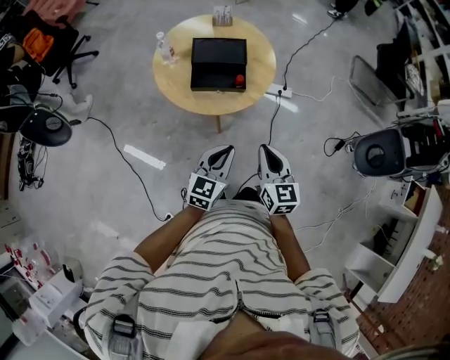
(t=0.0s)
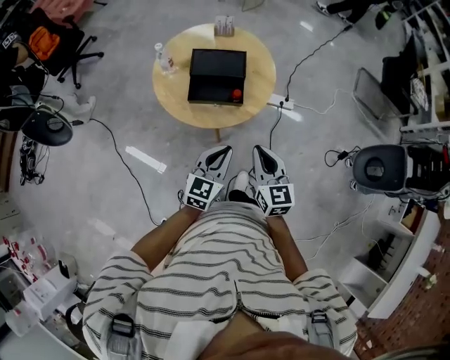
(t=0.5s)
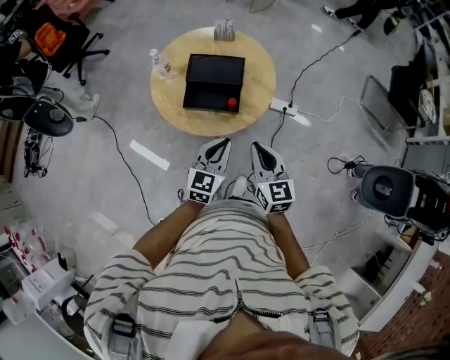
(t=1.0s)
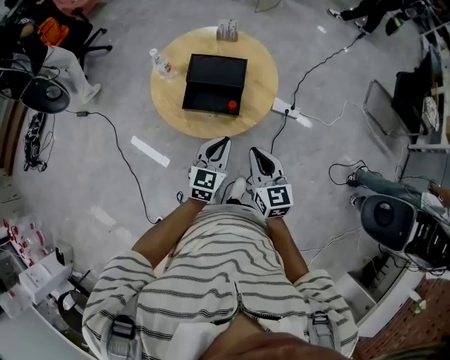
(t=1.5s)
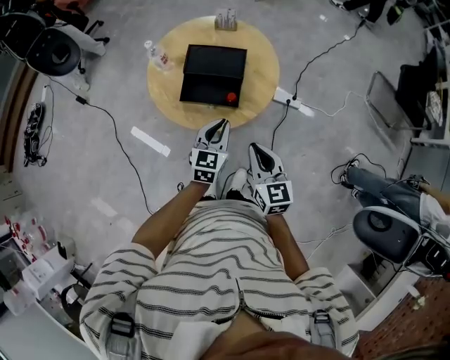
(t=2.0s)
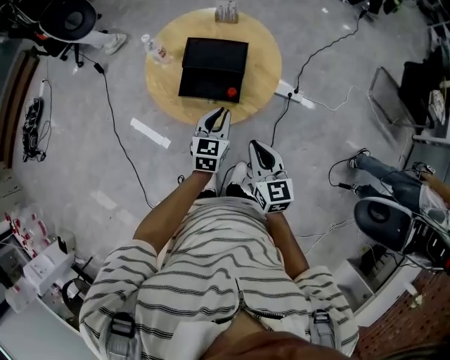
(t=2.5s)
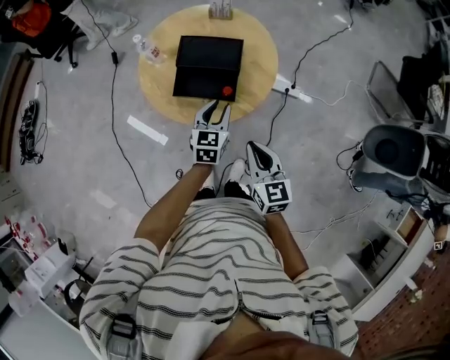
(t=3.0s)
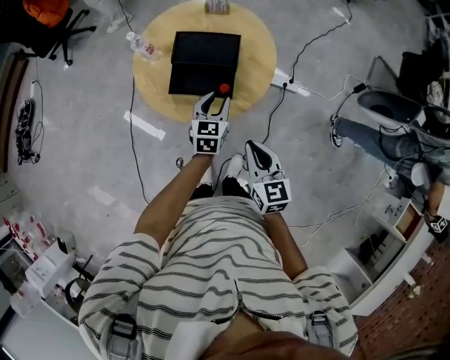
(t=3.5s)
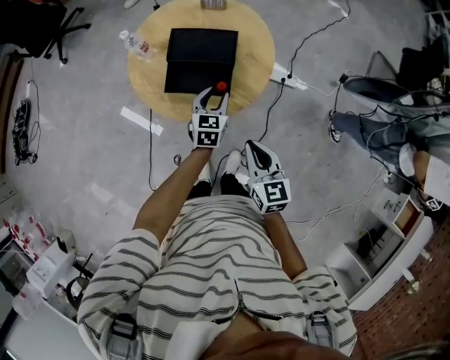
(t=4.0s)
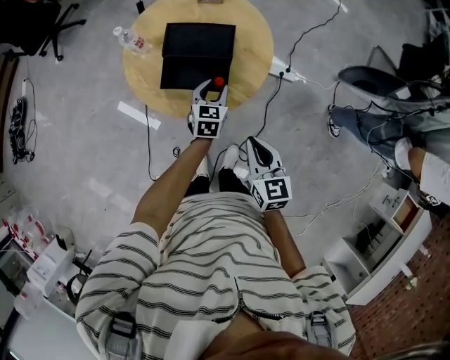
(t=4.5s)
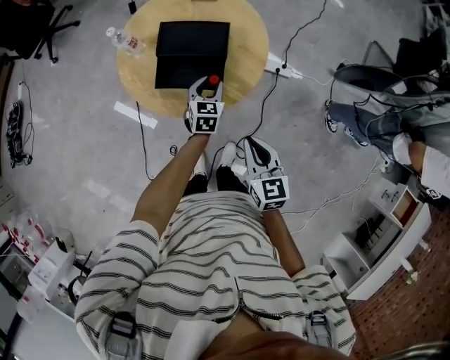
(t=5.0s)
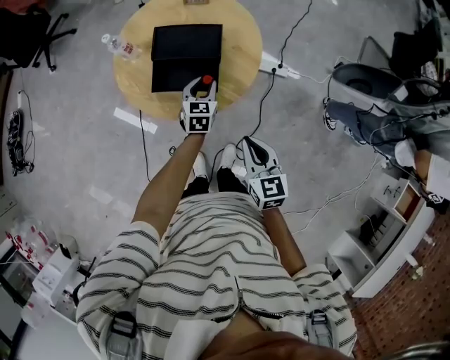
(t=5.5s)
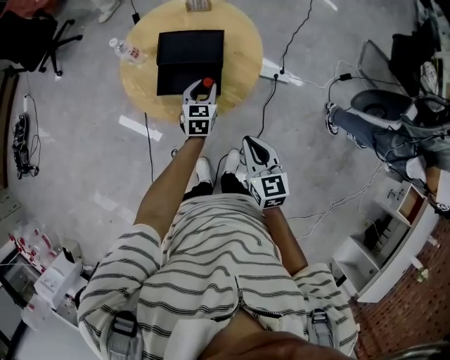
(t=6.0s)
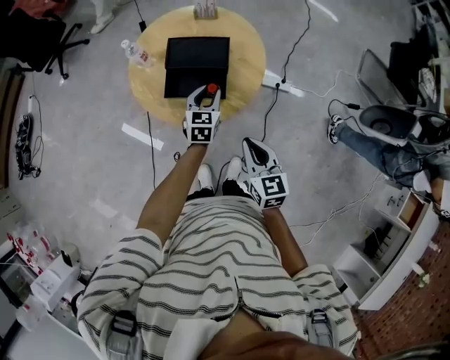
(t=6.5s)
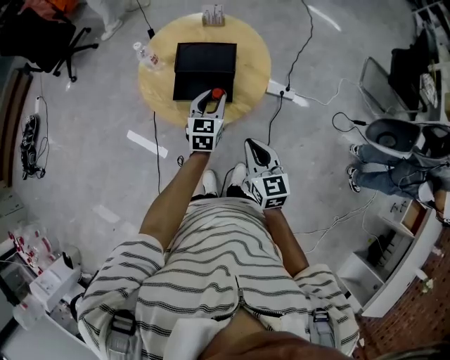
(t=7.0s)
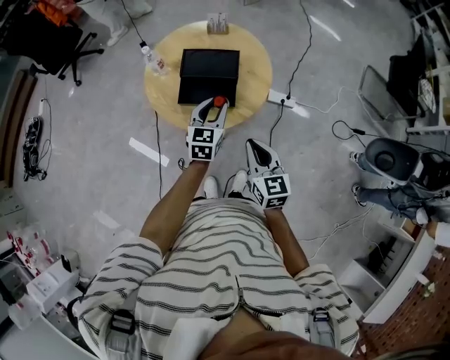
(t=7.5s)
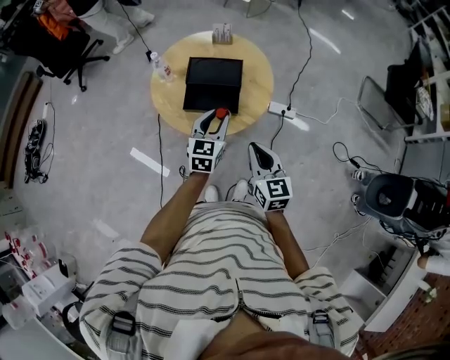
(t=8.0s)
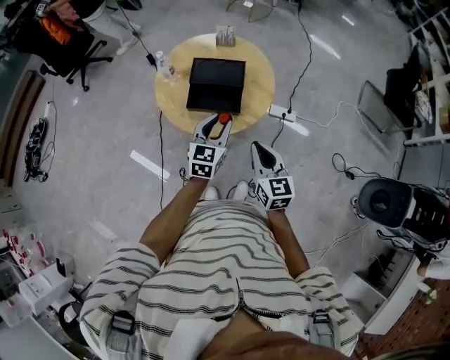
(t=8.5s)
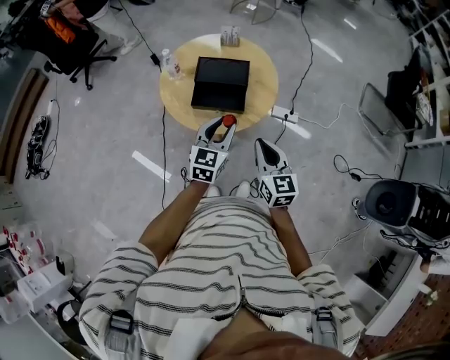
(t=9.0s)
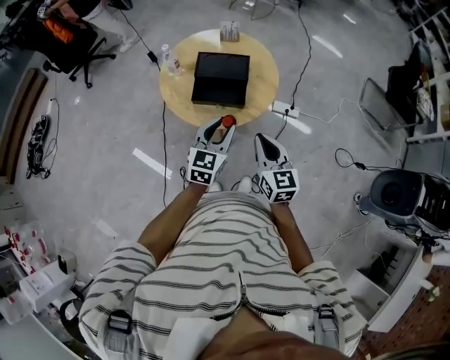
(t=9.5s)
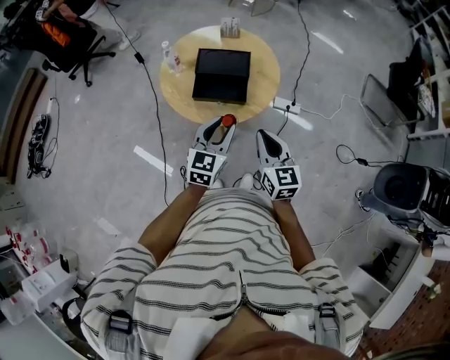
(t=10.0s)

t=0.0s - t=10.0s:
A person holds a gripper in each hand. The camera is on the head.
t=0.0s - t=2.0s: The left gripper goes approximately 20 cm forward, while the right gripper heads forward, covering approximately 10 cm.
t=2.0s - t=4.0s: The left gripper heads forward and downward, covering about 15 cm, and opens up.
t=4.0s - t=6.0s: There are only small adjustments of the grippers.
t=6.0s - t=8.0s: The right gripper shifts some 5 cm upward. Meanwhile the left gripper is displaced upward and backward by about 15 cm.
t=8.0s - t=10.0s: The left gripper is displaced backward by roughly 10 cm.

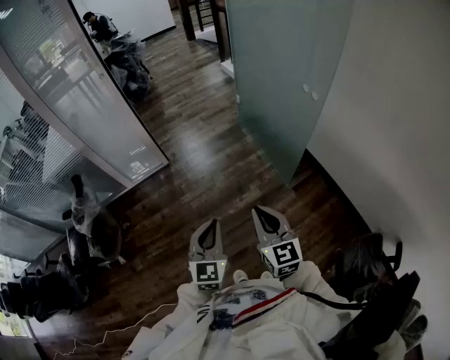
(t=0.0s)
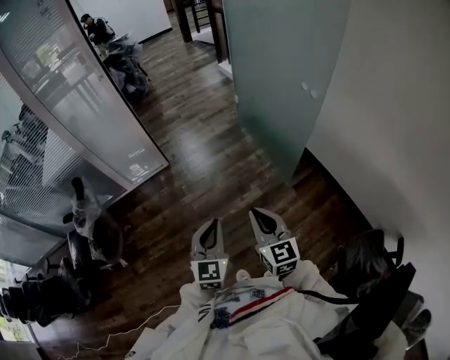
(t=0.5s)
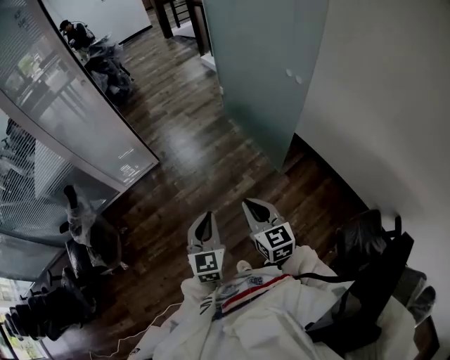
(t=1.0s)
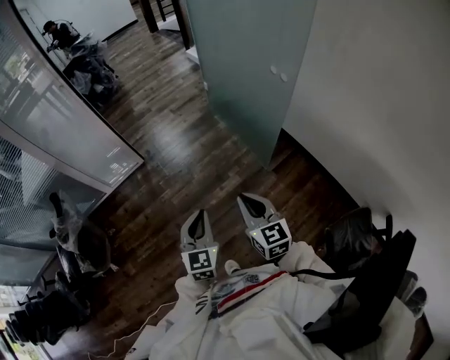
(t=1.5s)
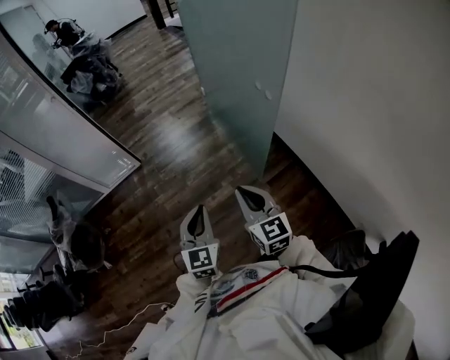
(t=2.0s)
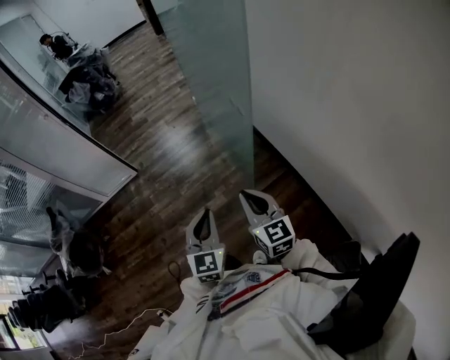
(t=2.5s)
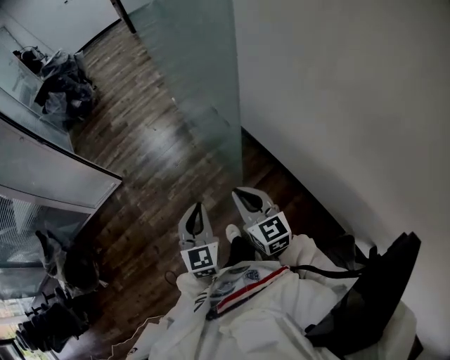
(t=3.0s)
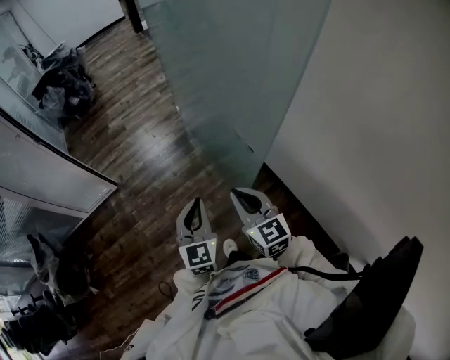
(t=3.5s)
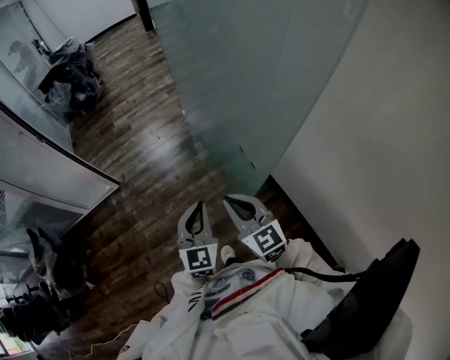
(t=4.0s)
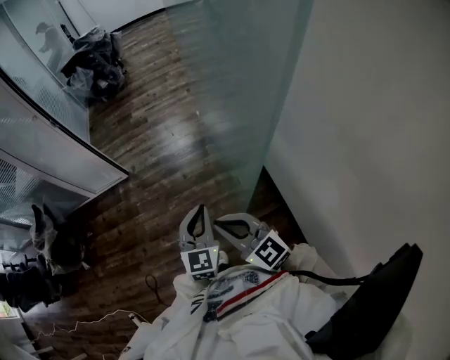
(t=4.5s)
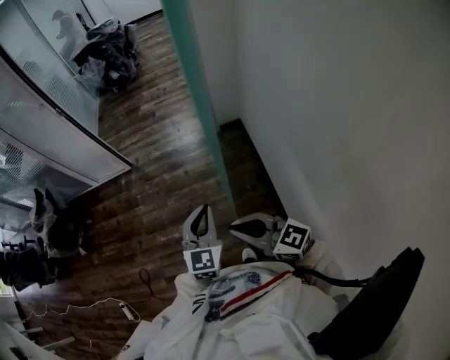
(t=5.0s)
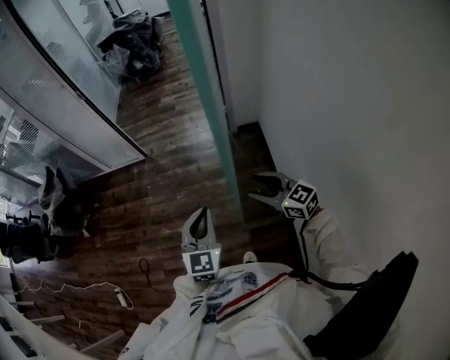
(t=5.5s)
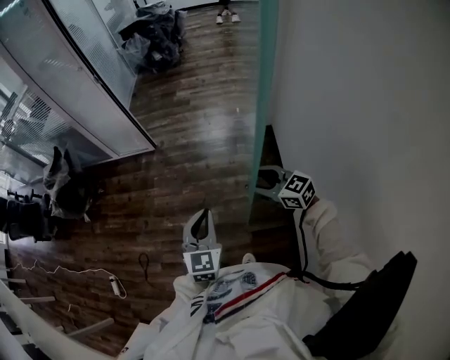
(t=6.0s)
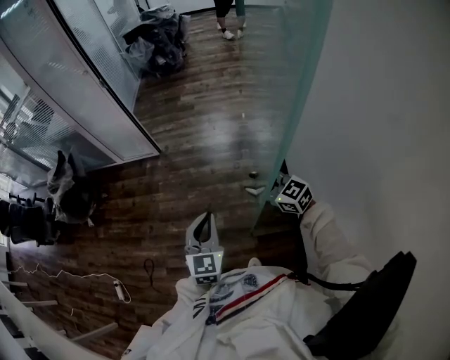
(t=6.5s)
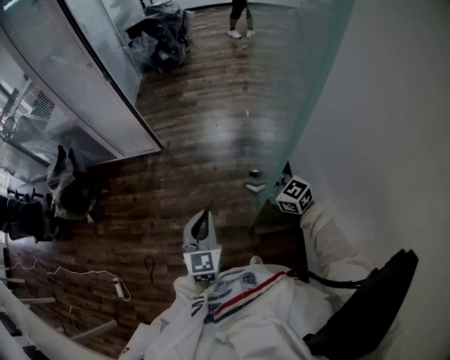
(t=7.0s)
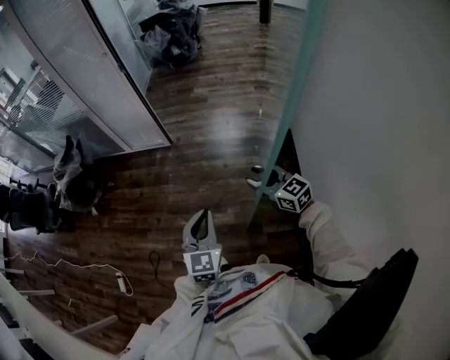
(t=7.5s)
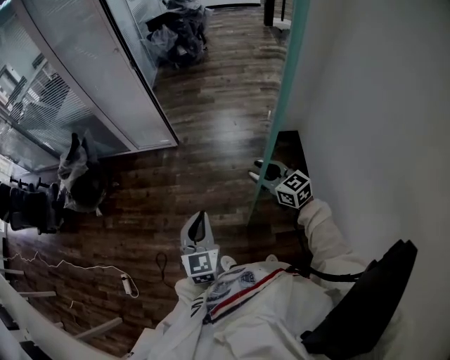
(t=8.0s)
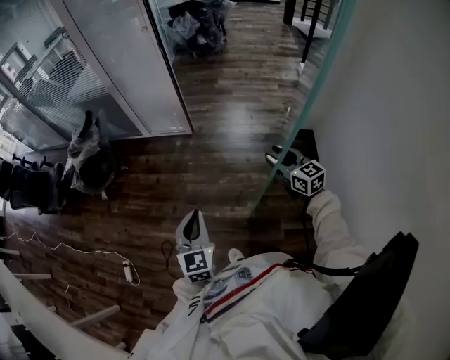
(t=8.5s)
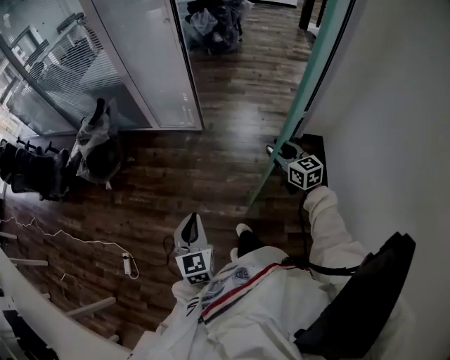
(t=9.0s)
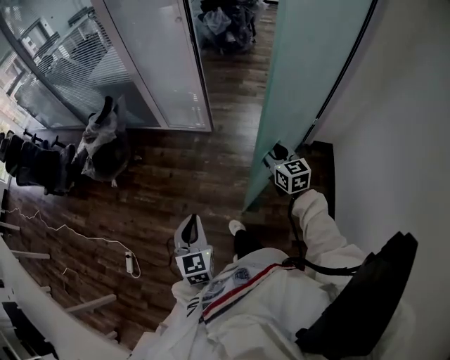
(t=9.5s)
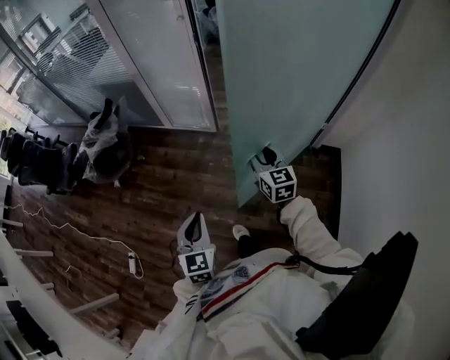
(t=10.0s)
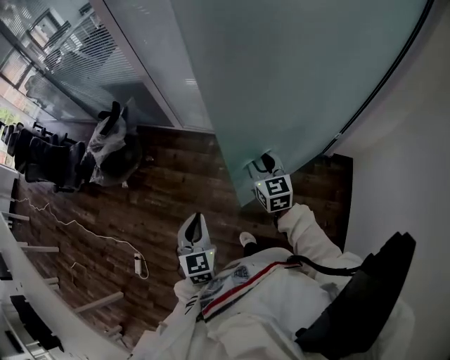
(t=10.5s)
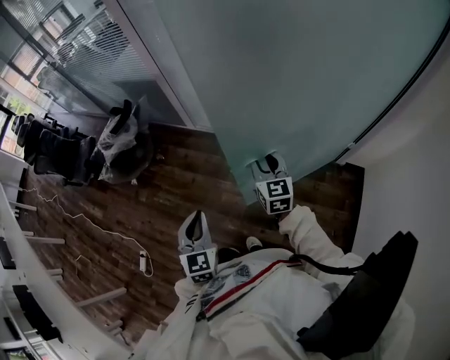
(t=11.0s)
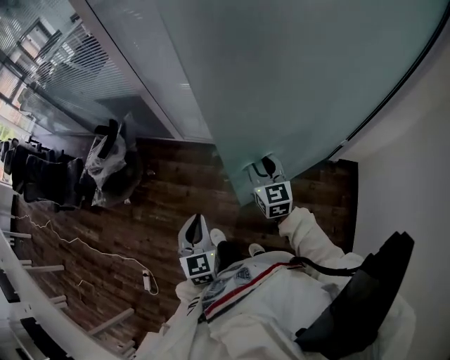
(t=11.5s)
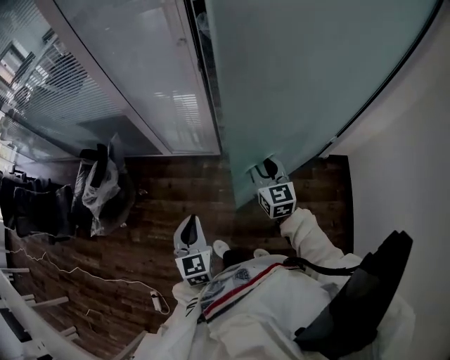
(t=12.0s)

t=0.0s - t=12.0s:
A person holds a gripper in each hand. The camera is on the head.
t=0.0s - t=2.0s: Both grippers travel together to the right and forward, some 20 cm.
t=2.0s - t=4.0s: The grippers both shift forward and to the right by approximately 25 cm.
t=4.0s - t=6.0s: The right gripper ends up about 15 cm from where it was, swivels some 50 degrees, and opens up. Meanwhile the left gripper rotates about 30 degrees.
t=6.0s - t=8.0s: Both grippers travel together to the left and forward, approximately 20 cm.
t=8.0s - t=10.0s: The right gripper is displaced forward and to the left by about 25 cm, while the left gripper moves to the left and forward, approximately 20 cm.
t=10.0s - t=12.0s: Both grippers move forward, roughly 20 cm.

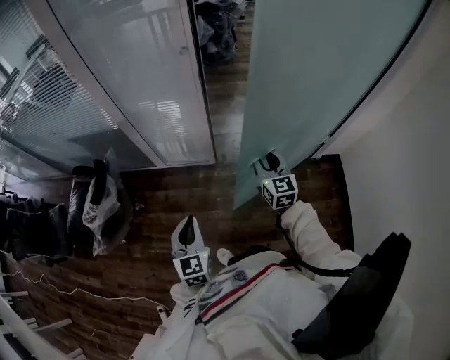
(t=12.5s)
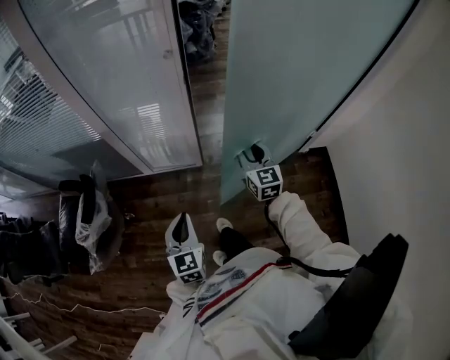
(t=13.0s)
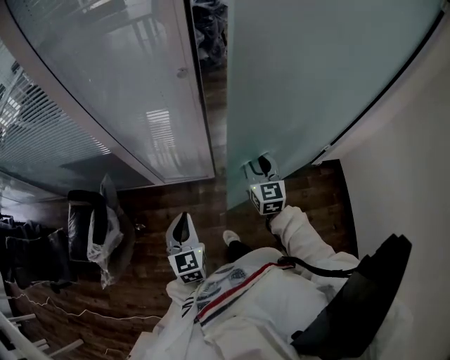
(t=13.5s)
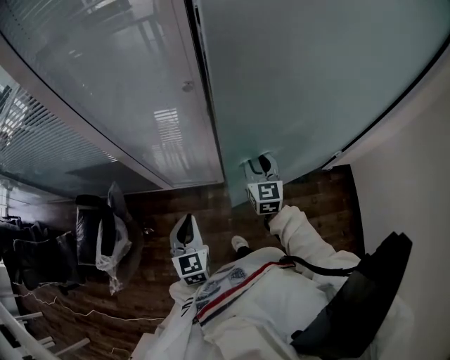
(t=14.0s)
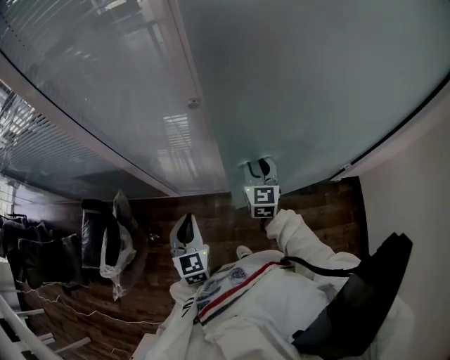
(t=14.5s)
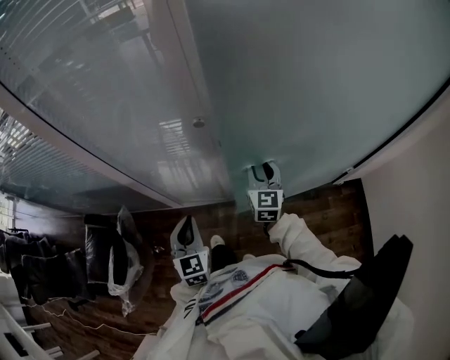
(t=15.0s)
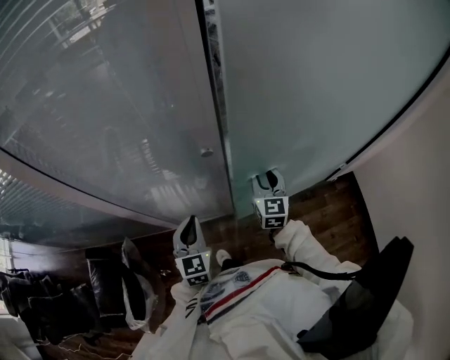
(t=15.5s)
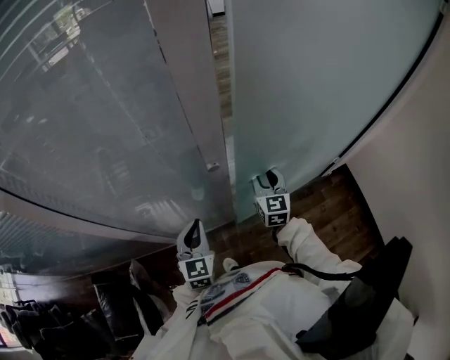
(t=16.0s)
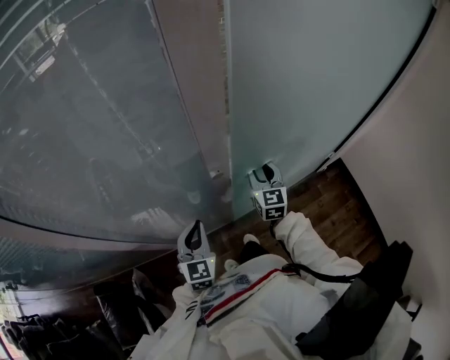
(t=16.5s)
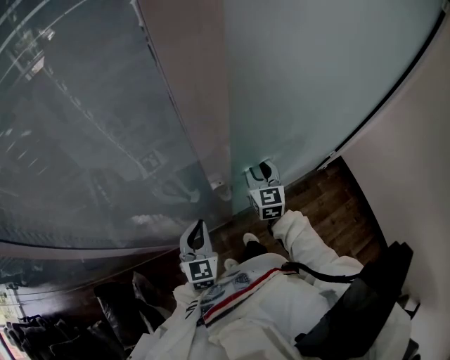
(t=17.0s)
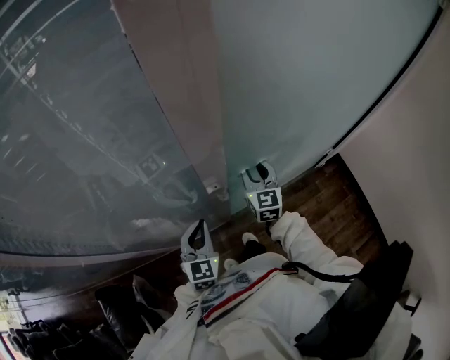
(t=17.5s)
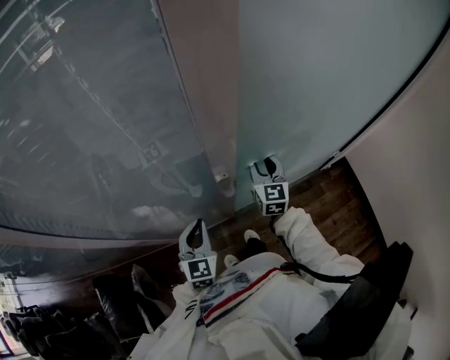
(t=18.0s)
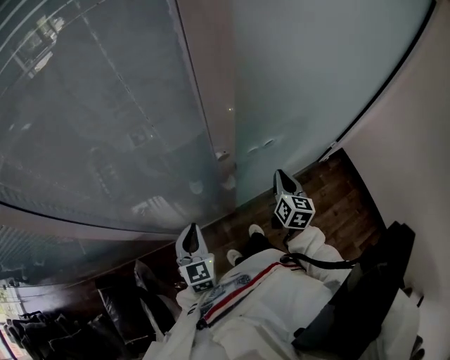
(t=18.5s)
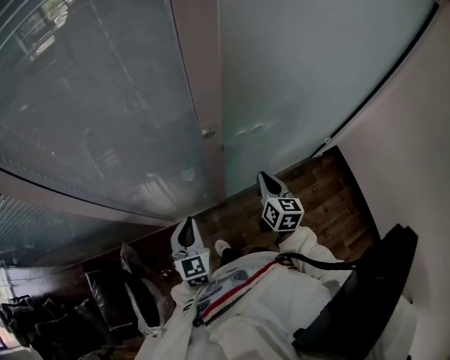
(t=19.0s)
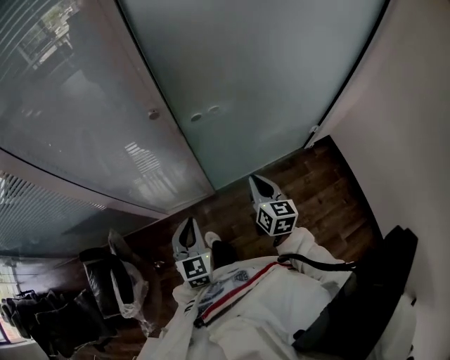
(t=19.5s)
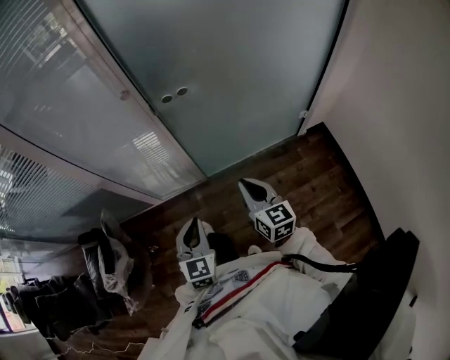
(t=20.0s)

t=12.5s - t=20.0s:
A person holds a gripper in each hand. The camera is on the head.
t=12.5s - t=14.5s: The grippers both shift forward by approximately 25 cm.
t=14.5s - t=16.5s: The right gripper is displaced forward by approximately 10 cm; the left gripper moves forward, some 20 cm, and rotates approximately 30 degrees.
t=16.5s - t=18.0s: There are only small adjustments of the grippers.
t=18.0s - t=20.0s: The right gripper goes about 40 cm backward, swivels roughly 30 degrees, and closes. The left gripper travels backward and to the right by roughly 35 cm.
